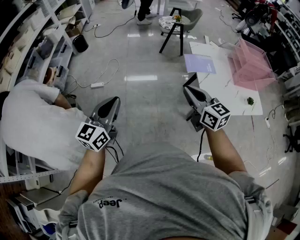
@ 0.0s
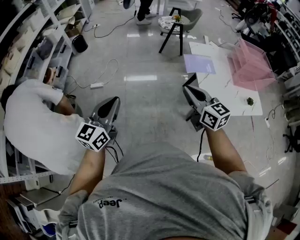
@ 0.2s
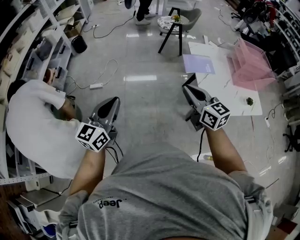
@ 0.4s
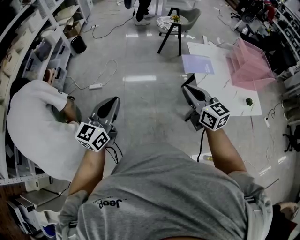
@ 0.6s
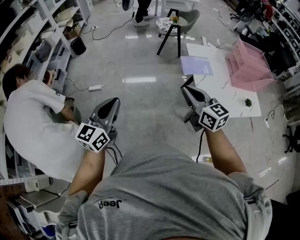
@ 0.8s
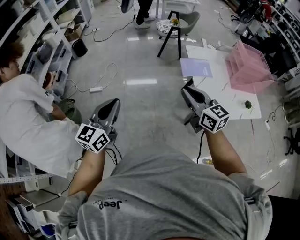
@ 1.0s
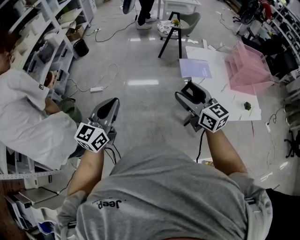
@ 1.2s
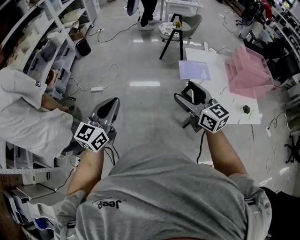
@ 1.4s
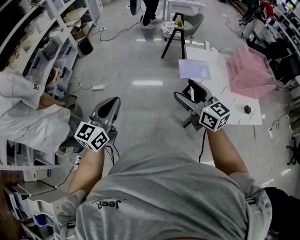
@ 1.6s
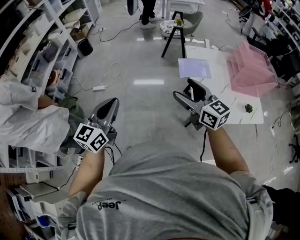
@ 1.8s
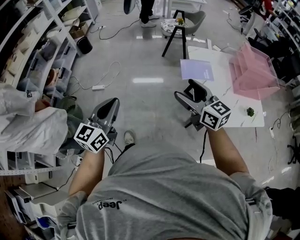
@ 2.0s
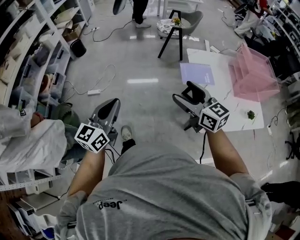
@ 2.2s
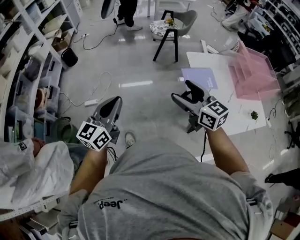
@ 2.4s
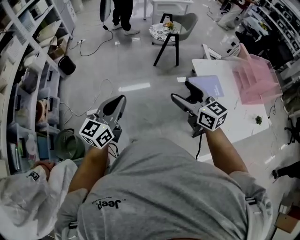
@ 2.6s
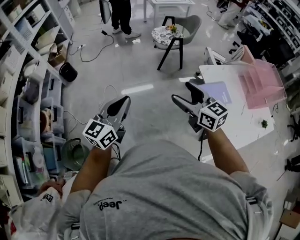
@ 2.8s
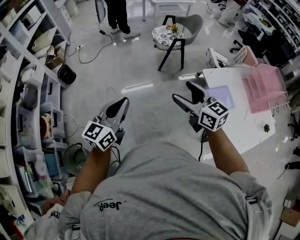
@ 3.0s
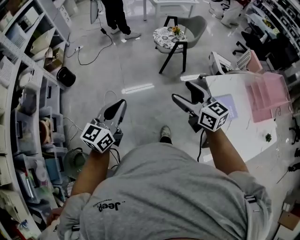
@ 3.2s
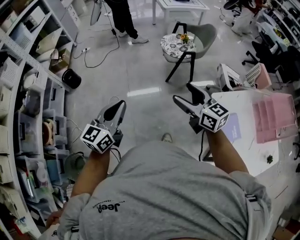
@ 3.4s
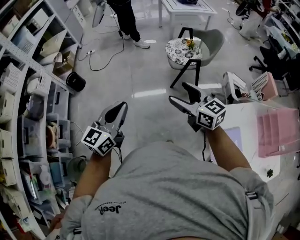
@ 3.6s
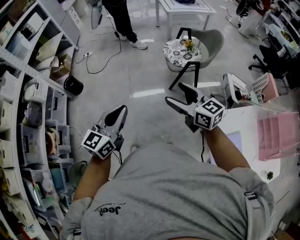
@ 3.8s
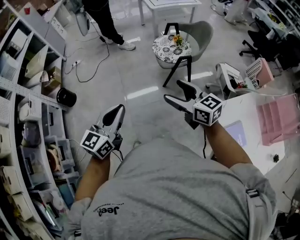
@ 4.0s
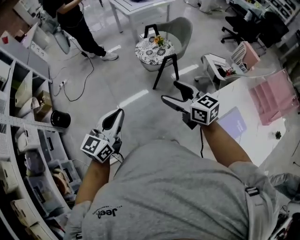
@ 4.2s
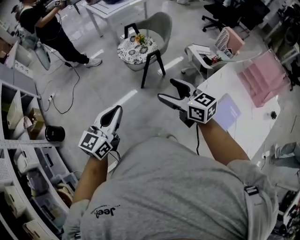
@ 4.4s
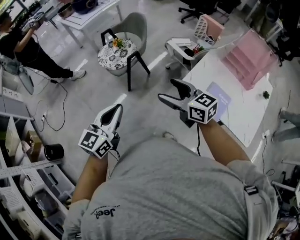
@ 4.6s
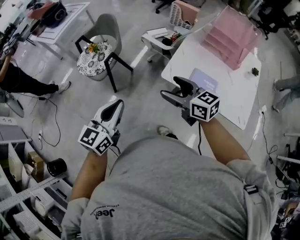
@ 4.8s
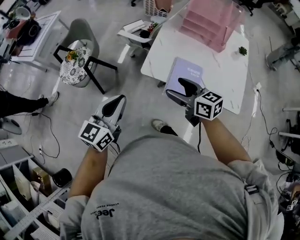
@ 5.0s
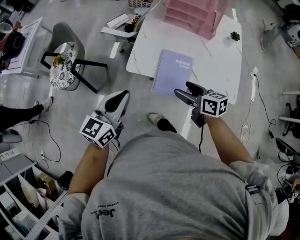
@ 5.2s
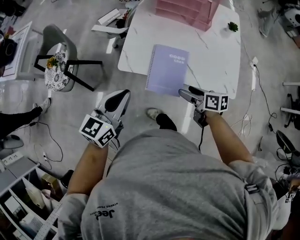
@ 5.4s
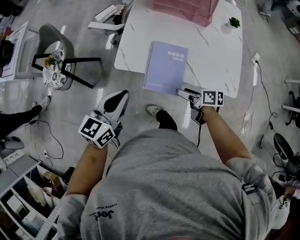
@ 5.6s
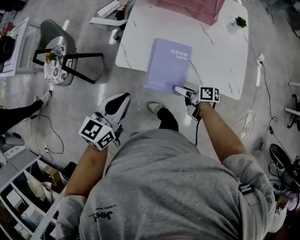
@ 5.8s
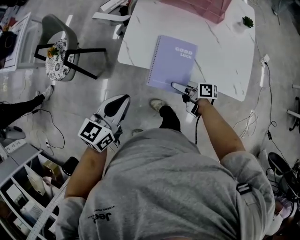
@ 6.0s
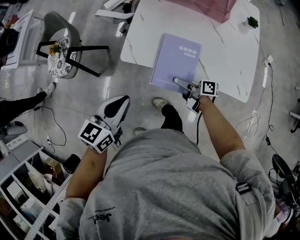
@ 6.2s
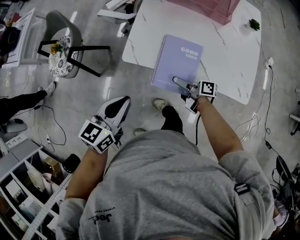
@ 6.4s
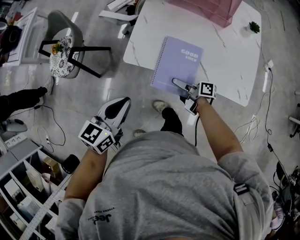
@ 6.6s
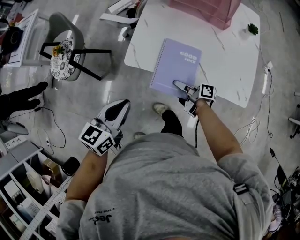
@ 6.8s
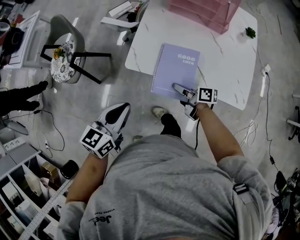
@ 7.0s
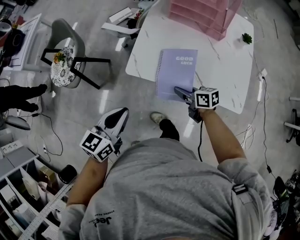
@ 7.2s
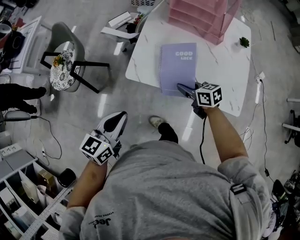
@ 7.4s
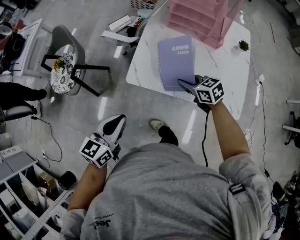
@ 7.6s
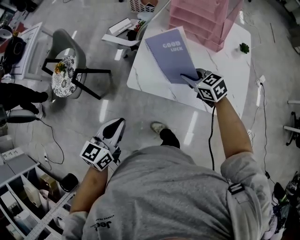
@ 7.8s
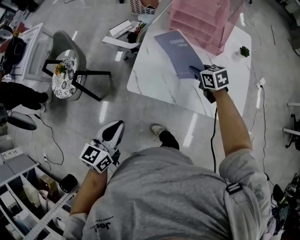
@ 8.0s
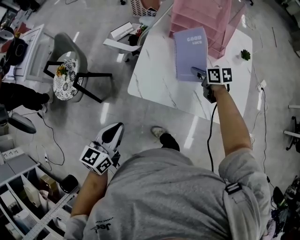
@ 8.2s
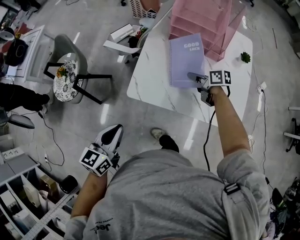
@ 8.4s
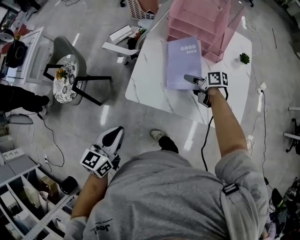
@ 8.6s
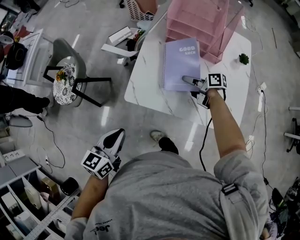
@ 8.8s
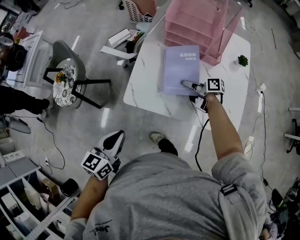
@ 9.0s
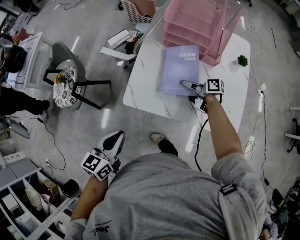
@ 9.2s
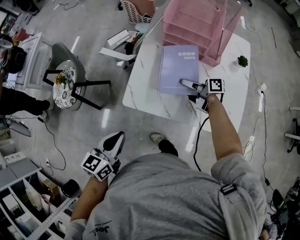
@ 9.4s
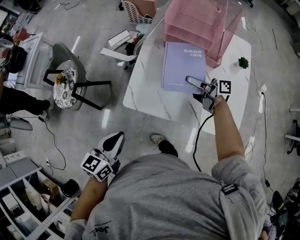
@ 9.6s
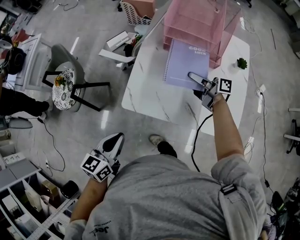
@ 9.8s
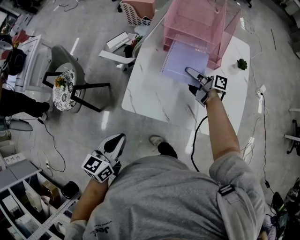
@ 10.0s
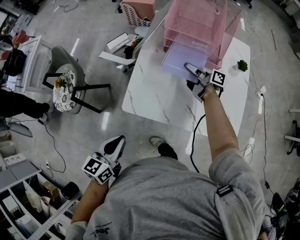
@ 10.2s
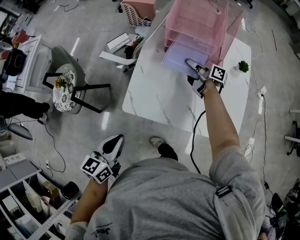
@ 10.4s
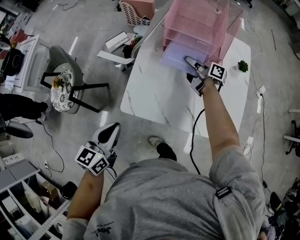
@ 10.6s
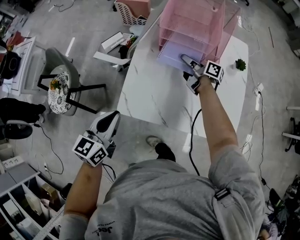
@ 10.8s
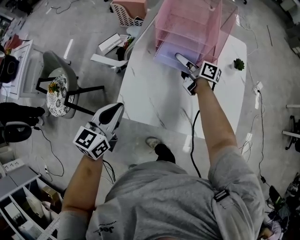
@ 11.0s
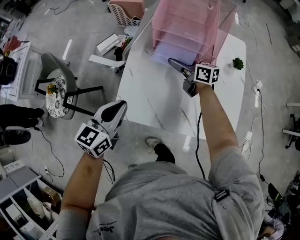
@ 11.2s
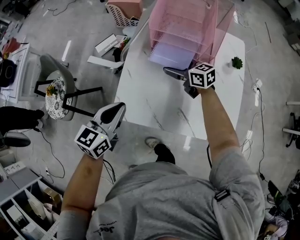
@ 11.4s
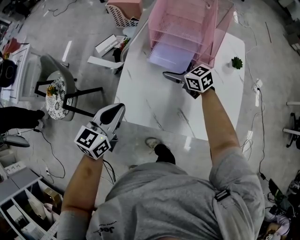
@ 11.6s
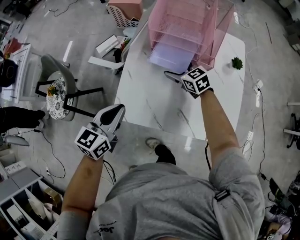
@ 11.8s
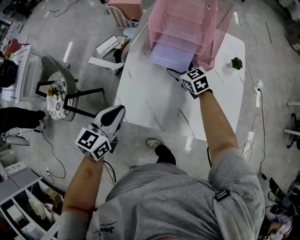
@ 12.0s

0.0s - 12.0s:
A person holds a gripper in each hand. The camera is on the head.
0.0s - 1.6s: The two grippers go approximately 10 cm to the right. The right gripper opens its fingers.
1.6s - 3.0s: The two grippers travel together, forward and to the left, some 50 cm.
3.0s - 4.4s: The right gripper ends up about 35 cm from where it was. The left gripper changes place by about 40 cm, and changes its angle by about 20 degrees.
4.4s - 6.0s: The pair of grippers is taken approximately 40 cm. The right gripper twists approximately 70 degrees clockwise, seen from behind. The left gripper rotates some 50 degrees.
6.0s - 7.6s: The left gripper heads to the left, covering some 5 cm, while the right gripper is displaced upward and forward by about 15 cm, rolls counterclockwise, seen from behind, by roughly 60 degrees, and closes its fingers.
7.6s - 9.0s: The right gripper goes about 10 cm forward and to the right, and twists approximately 50 degrees clockwise, seen from behind.
9.0s - 10.4s: The right gripper travels forward and to the right by about 15 cm, and rotates approximately 20 degrees.
10.4s - 12.0s: The left gripper travels forward and to the right by some 15 cm, while the right gripper twists approximately 70 degrees counterclockwise, seen from behind, and opens its fingers.

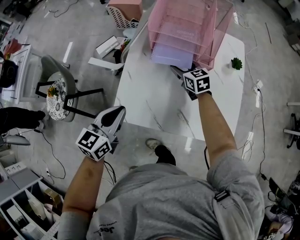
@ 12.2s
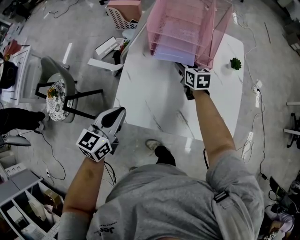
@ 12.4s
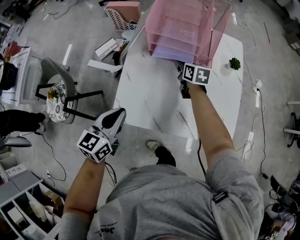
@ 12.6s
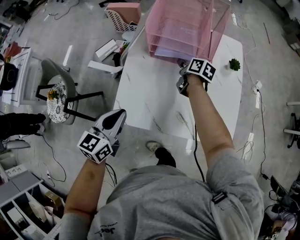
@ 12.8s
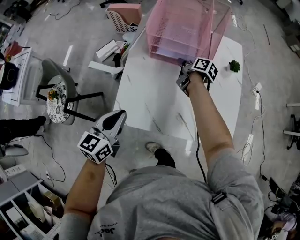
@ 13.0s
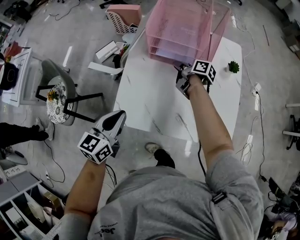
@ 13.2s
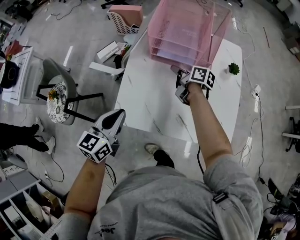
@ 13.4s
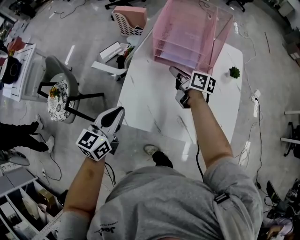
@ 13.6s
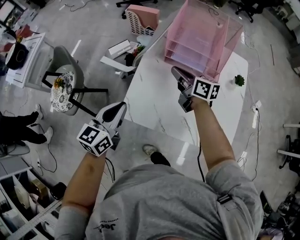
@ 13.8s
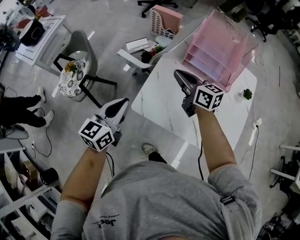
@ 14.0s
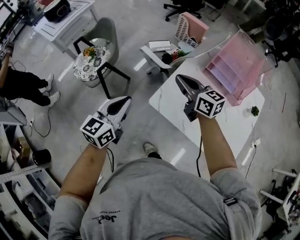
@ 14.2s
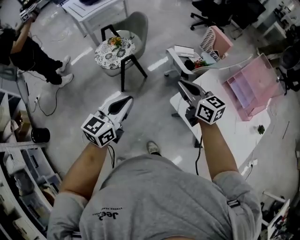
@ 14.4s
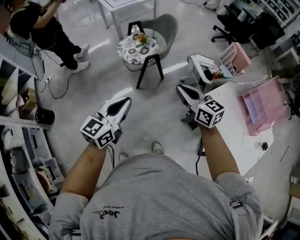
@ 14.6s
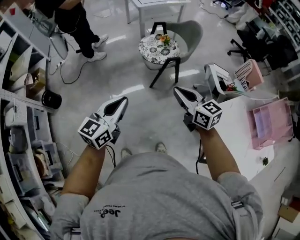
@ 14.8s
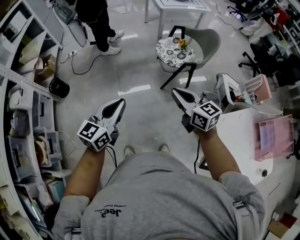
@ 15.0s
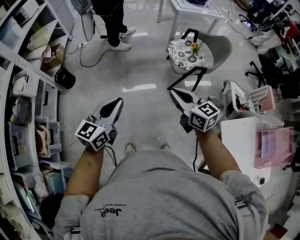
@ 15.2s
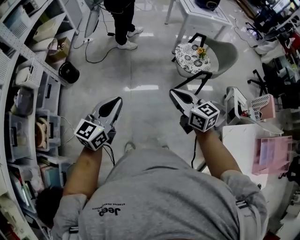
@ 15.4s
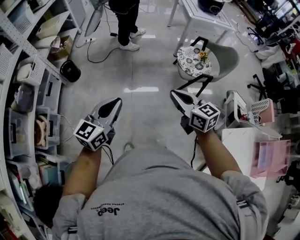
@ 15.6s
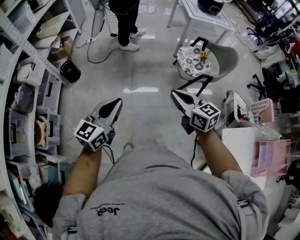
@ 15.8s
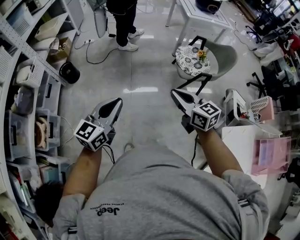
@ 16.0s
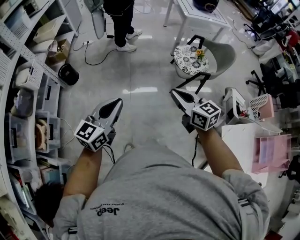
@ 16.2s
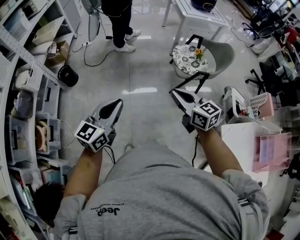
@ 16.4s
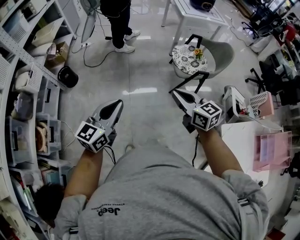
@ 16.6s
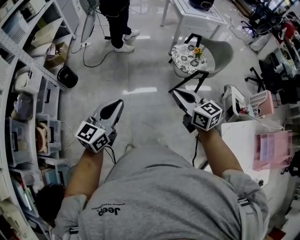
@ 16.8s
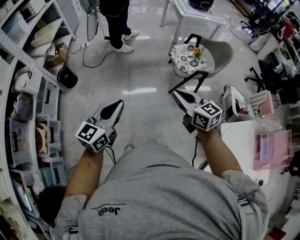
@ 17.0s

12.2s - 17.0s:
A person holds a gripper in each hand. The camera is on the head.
12.2s - 13.8s: The right gripper goes some 15 cm upward and to the left, changes its angle by some 40 degrees, and closes up.
13.8s - 15.4s: The two grippers travel together, approximately 80 cm. The left gripper swivels about 70 degrees. Meanwhile the right gripper swivels some 80 degrees.
15.4s - 17.0s: The grippers make only small movements.

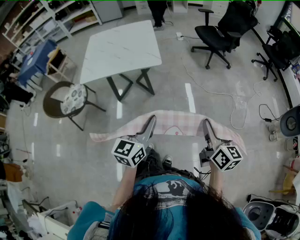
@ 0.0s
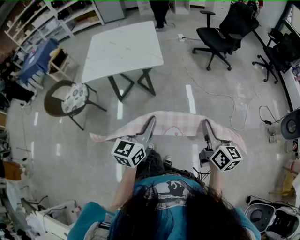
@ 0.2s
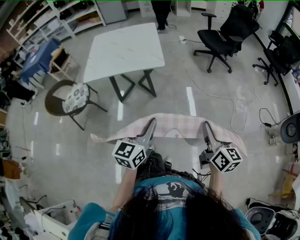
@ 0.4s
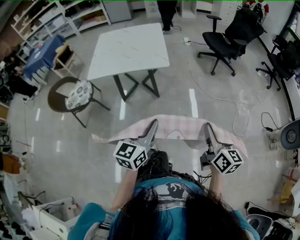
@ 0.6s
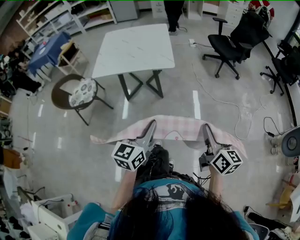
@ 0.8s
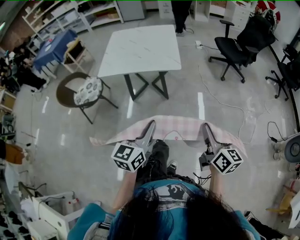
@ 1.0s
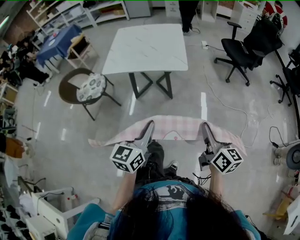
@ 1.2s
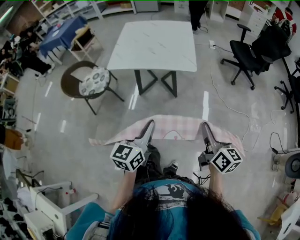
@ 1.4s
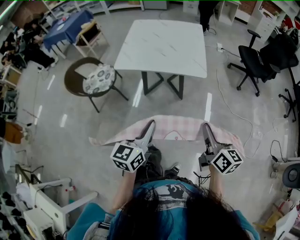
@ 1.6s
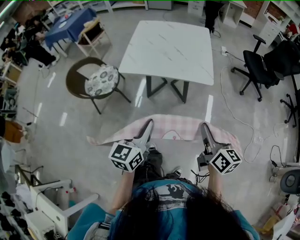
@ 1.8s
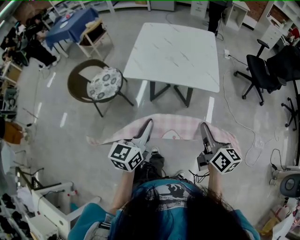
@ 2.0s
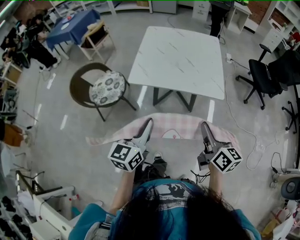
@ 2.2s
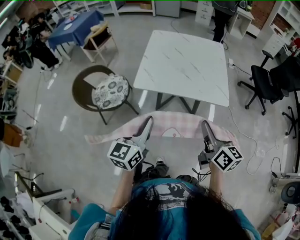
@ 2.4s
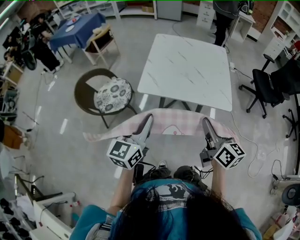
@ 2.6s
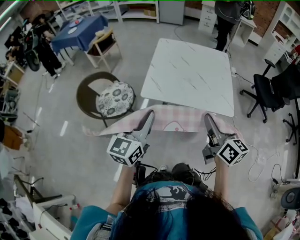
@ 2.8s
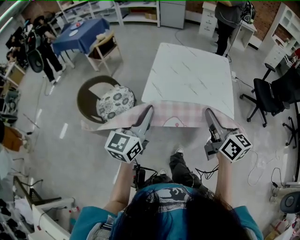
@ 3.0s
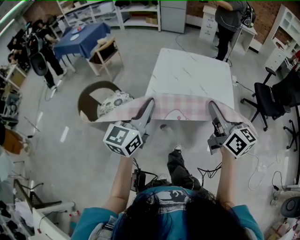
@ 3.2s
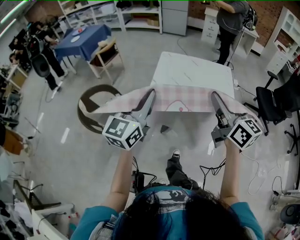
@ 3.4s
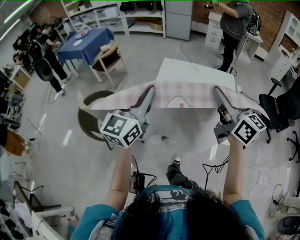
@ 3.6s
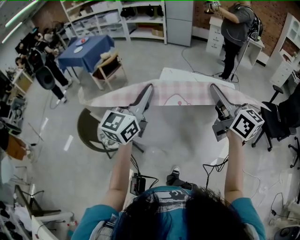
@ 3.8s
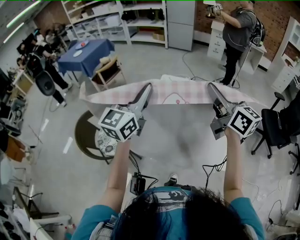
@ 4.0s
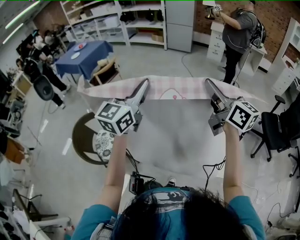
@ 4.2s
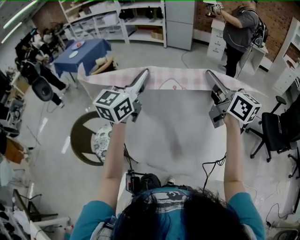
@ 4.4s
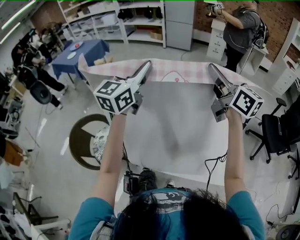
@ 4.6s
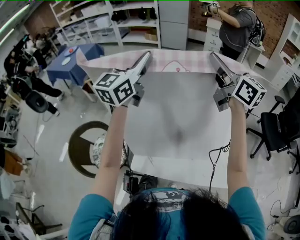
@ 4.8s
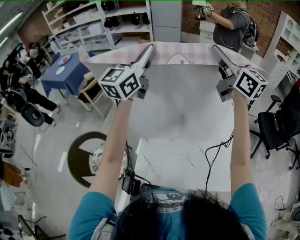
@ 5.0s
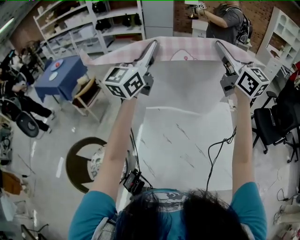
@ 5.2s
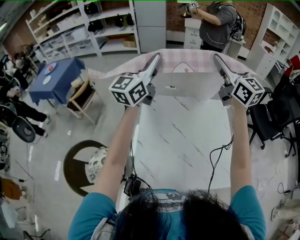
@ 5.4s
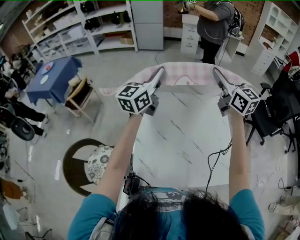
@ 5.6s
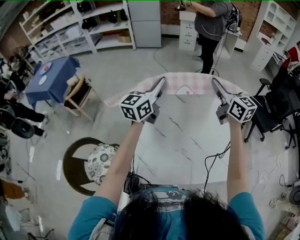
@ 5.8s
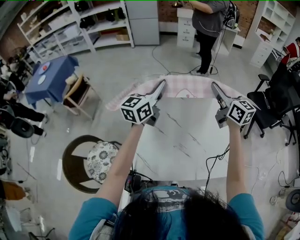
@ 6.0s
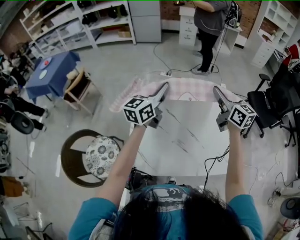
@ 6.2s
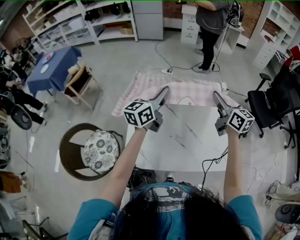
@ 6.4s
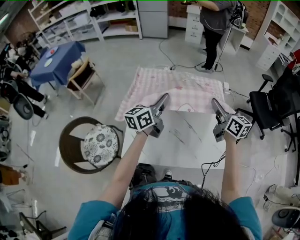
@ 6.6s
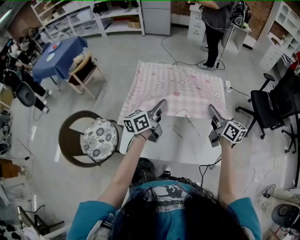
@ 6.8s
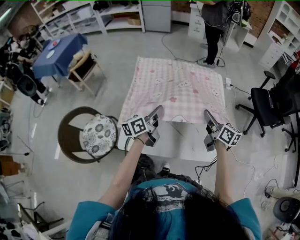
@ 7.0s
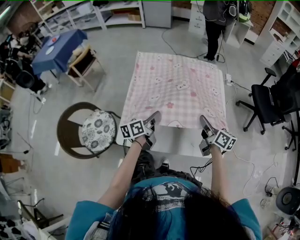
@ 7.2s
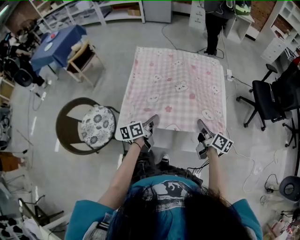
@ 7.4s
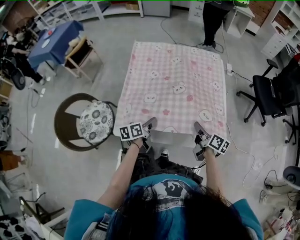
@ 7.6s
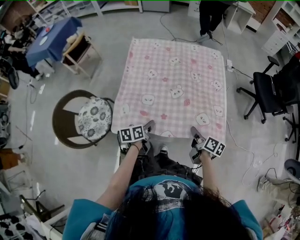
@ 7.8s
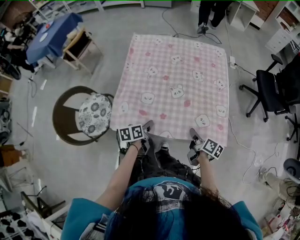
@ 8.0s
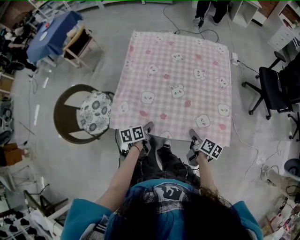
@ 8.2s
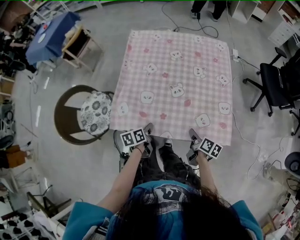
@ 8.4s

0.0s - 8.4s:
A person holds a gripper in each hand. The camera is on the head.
0.0s - 1.4s: Both grippers travel together to the left, some 15 cm.
1.4s - 2.8s: The right gripper heads forward and to the left, covering roughly 35 cm; the left gripper goes some 35 cm to the left and forward.
2.8s - 4.2s: Both grippers move forward, about 35 cm.
4.2s - 5.6s: The right gripper heads forward and to the right, covering approximately 20 cm, and changes its angle by roughly 30 degrees. The left gripper travels forward by about 25 cm, and turns by approximately 20 degrees.
5.6s - 7.0s: The two grippers go some 35 cm downward and backward. The left gripper rotates around the line of its fingers by roughly 40 degrees, counterclockwise from behind; the right gripper changes its angle by roughly 40 degrees.
7.0s - 8.4s: Both grippers travel together downward and backward, about 30 cm. The right gripper changes its angle by approximately 40 degrees; the left gripper tilts its fingers roughly 40 degrees downward.
